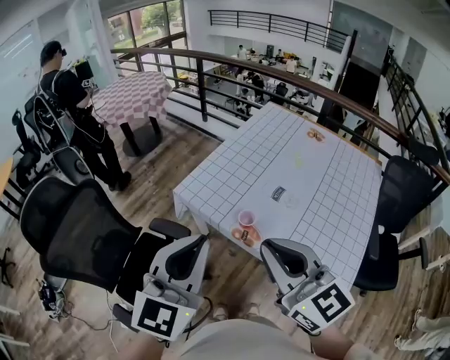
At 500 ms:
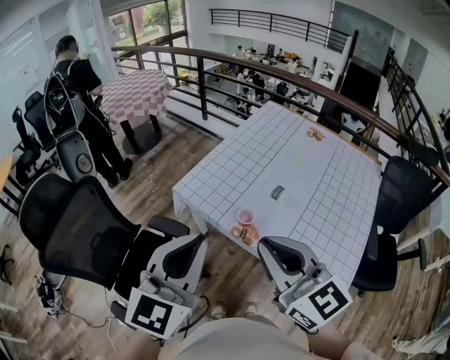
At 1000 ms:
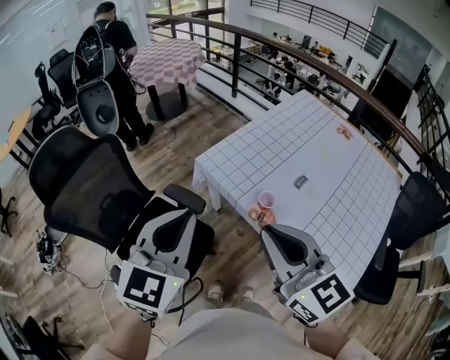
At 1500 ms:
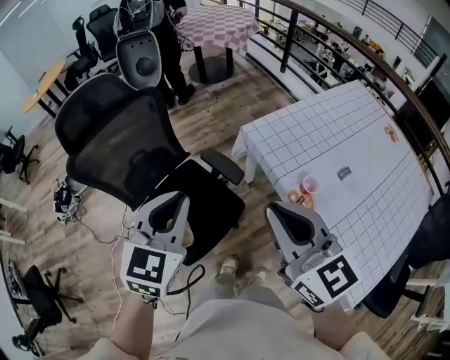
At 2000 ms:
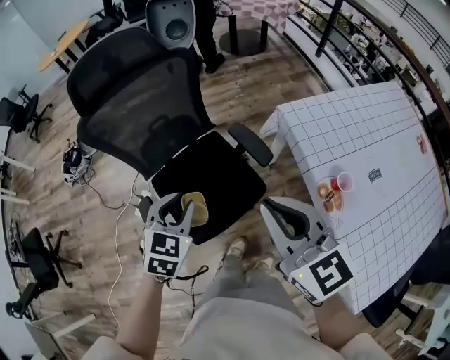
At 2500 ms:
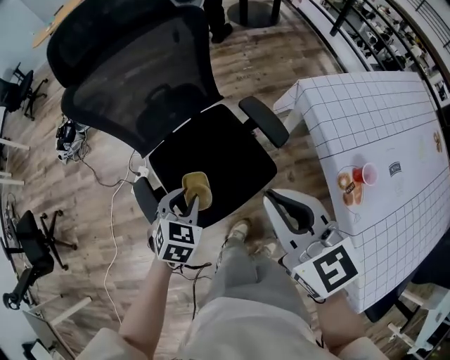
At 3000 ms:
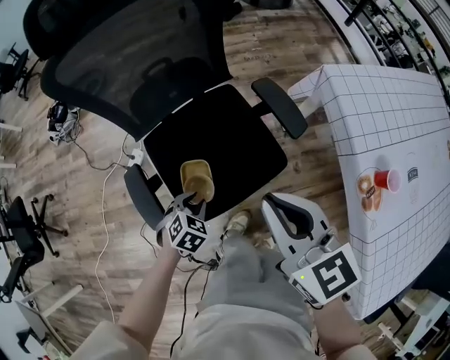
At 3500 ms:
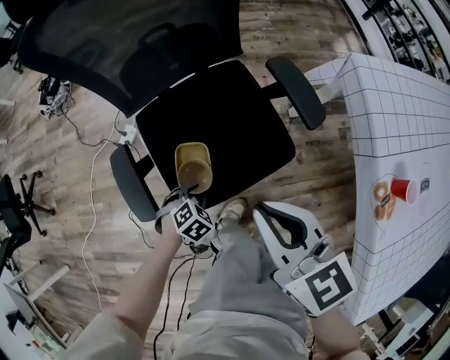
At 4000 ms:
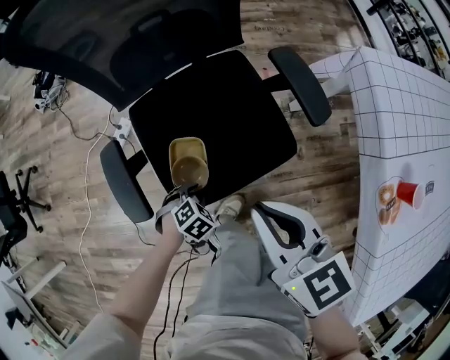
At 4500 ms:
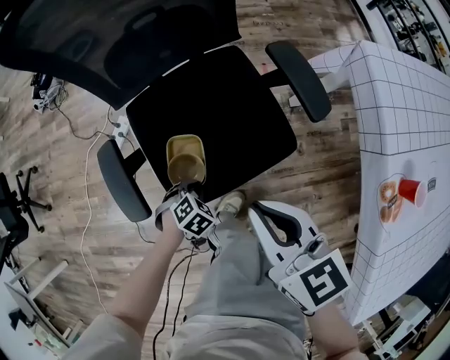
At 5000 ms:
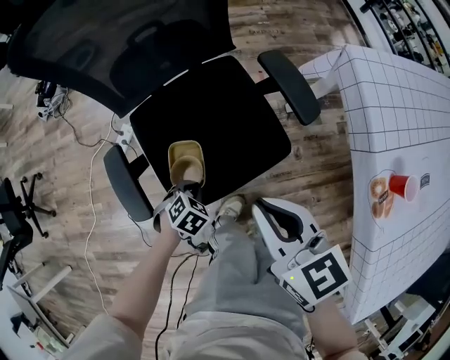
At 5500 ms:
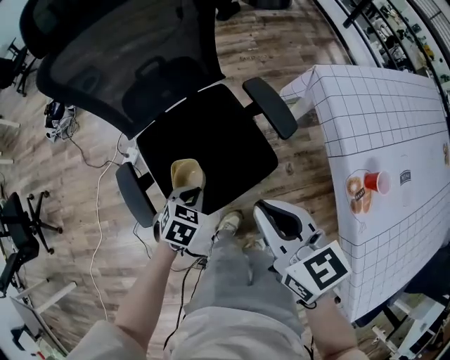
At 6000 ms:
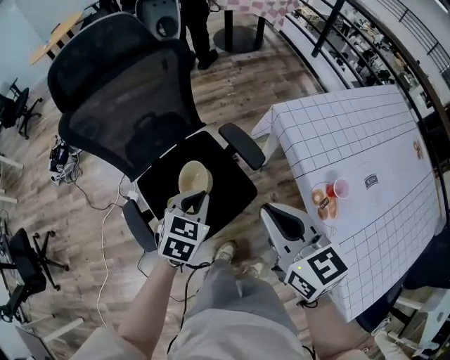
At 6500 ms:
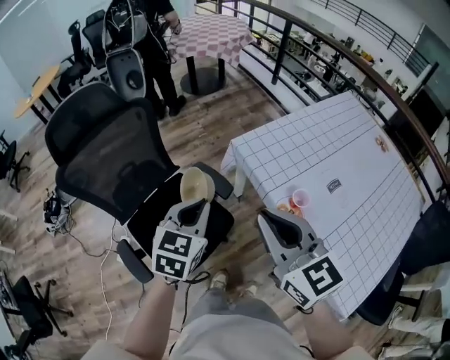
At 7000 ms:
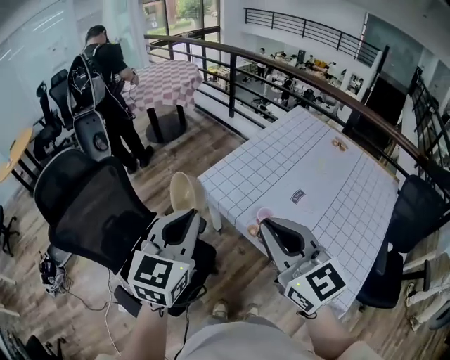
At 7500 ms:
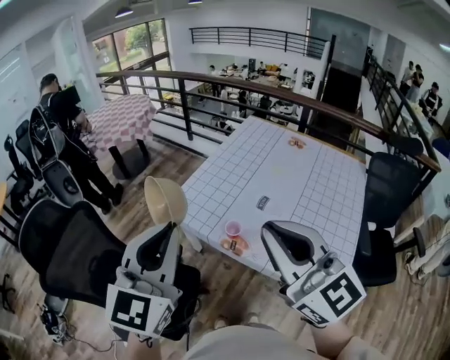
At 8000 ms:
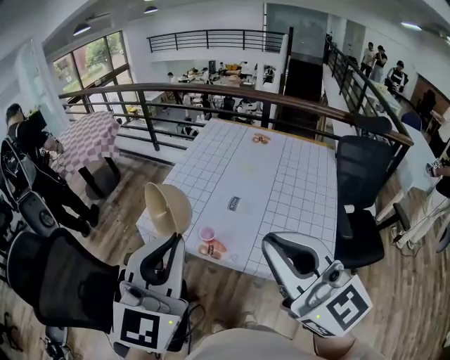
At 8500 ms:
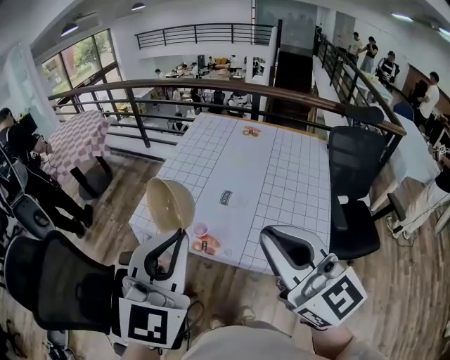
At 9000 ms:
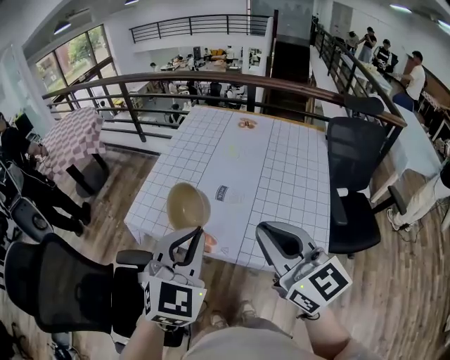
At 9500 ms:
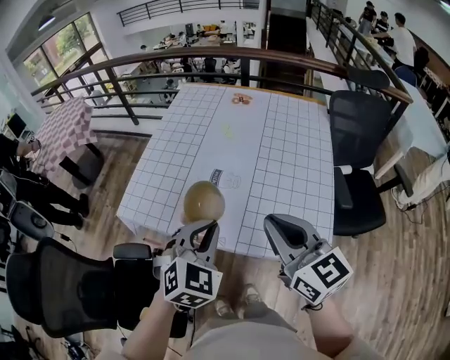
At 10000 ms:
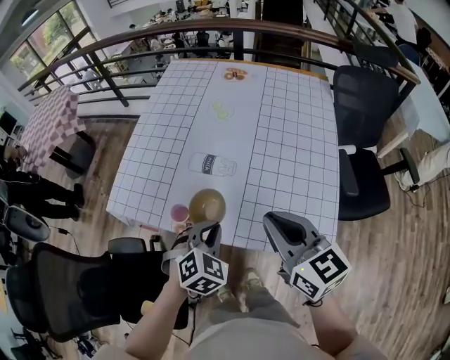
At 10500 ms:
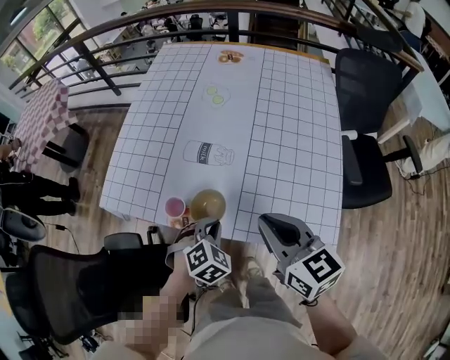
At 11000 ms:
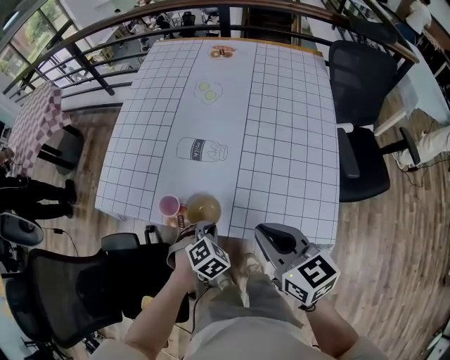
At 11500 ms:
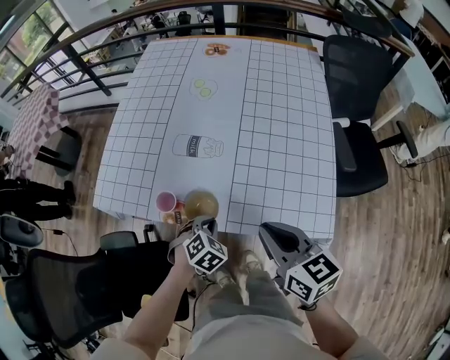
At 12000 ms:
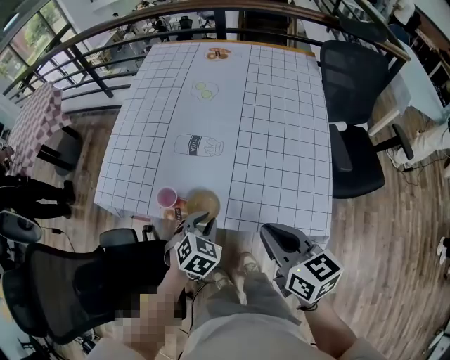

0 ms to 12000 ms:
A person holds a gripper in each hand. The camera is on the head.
0 ms to 2000 ms: The left gripper shifts by roughly 40 cm, tips its fingers downward by approximately 40 degrees, and opens up. Meanwhile the right gripper ends up some 30 cm from where it was, and swivels approximately 30 degrees.
2000 ms to 4000 ms: The left gripper heads downward, covering some 50 cm, and points its fingers some 40 degrees further downward. The right gripper heads downward, covering approximately 30 cm, and swivels roughly 20 degrees.
4000 ms to 6000 ms: The right gripper travels upward by roughly 20 cm. Meanwhile the left gripper shifts some 40 cm upward, points its fingers roughly 30 degrees further upward, and closes up.
6000 ms to 8000 ms: The right gripper ends up about 40 cm from where it was, and turns by roughly 60 degrees. The left gripper is displaced upward by about 40 cm, and points its fingers some 50 degrees further upward.
8000 ms to 10000 ms: The right gripper is displaced downward, forward and to the right by some 30 cm, and turns by some 30 degrees. Meanwhile the left gripper shifts approximately 40 cm downward, to the right and forward, and tips its fingers downward by approximately 50 degrees.
10000 ms to 12000 ms: The left gripper shifts about 10 cm downward. The right gripper travels downward and backward by about 10 cm.

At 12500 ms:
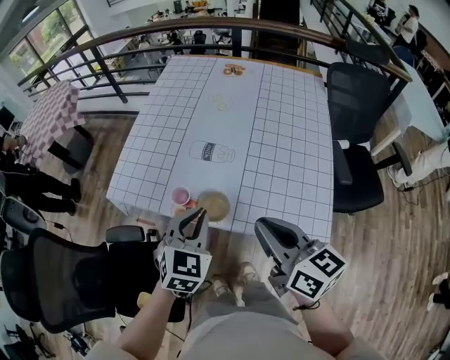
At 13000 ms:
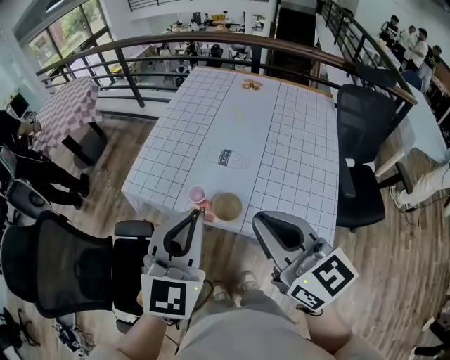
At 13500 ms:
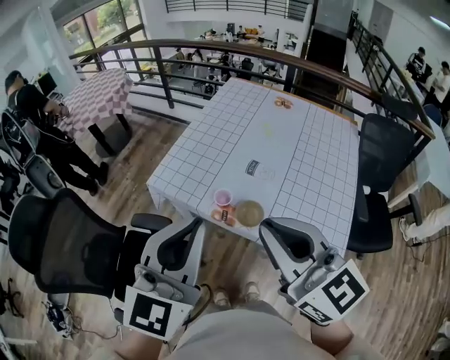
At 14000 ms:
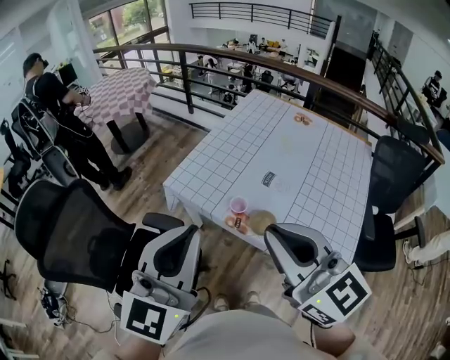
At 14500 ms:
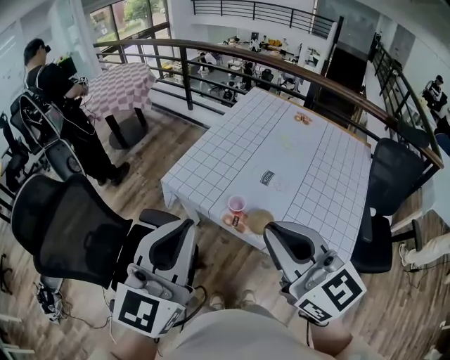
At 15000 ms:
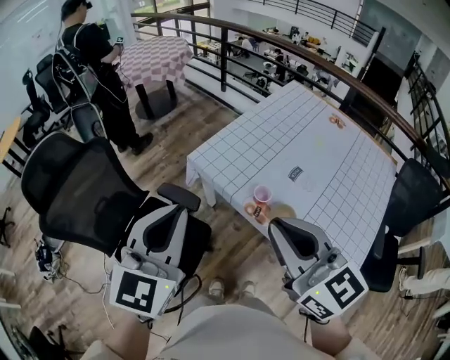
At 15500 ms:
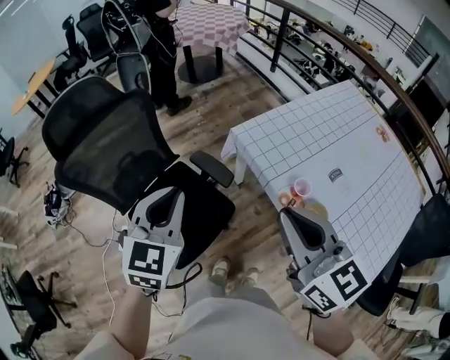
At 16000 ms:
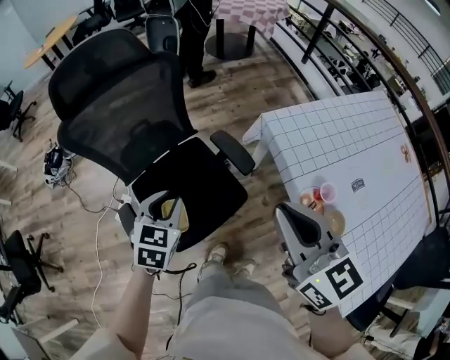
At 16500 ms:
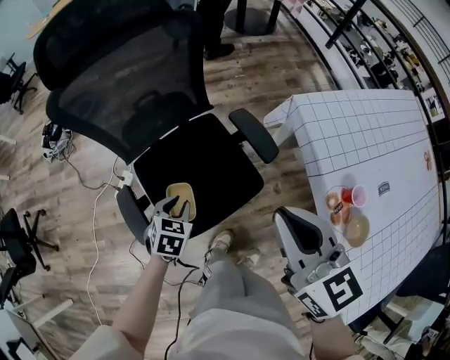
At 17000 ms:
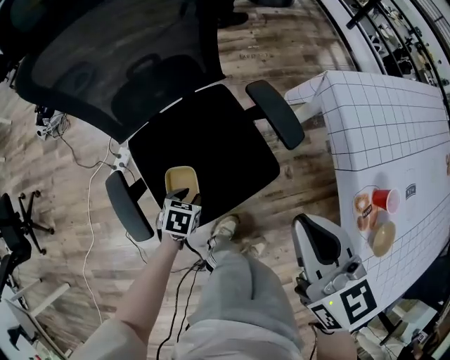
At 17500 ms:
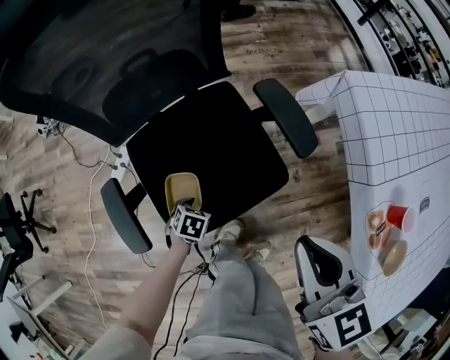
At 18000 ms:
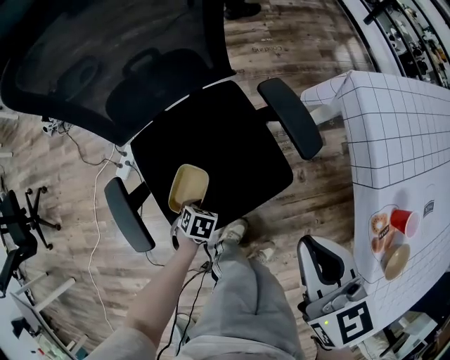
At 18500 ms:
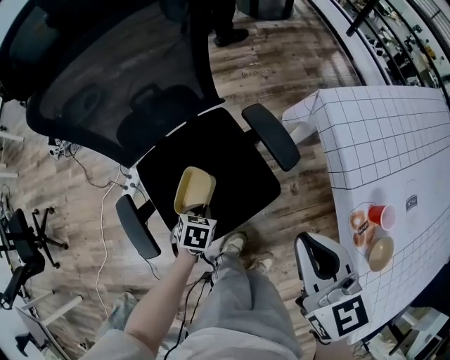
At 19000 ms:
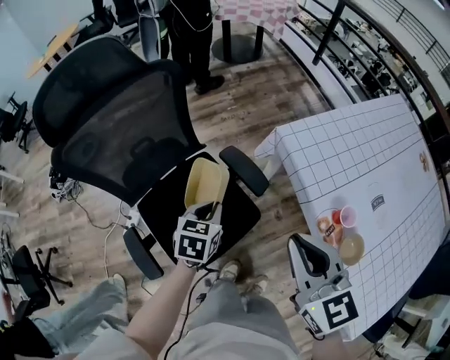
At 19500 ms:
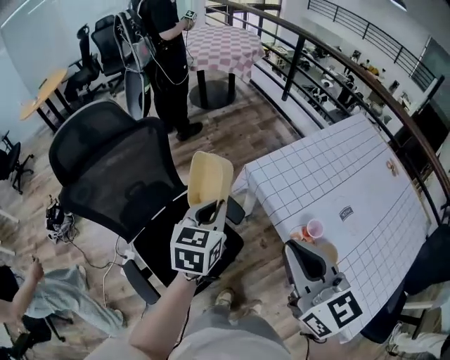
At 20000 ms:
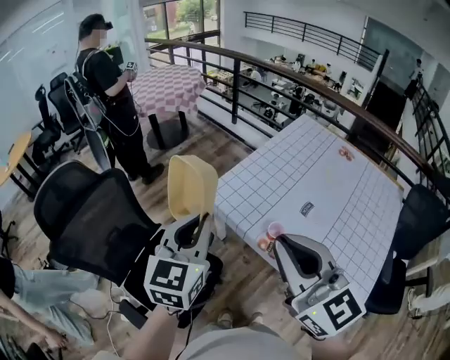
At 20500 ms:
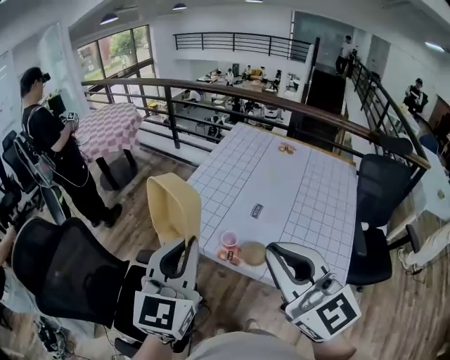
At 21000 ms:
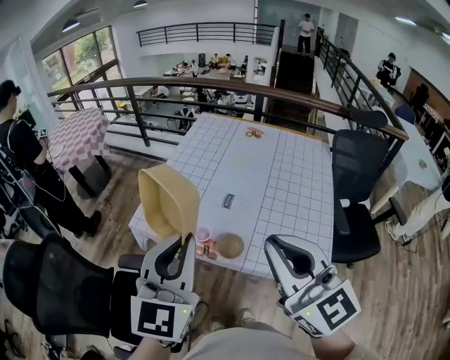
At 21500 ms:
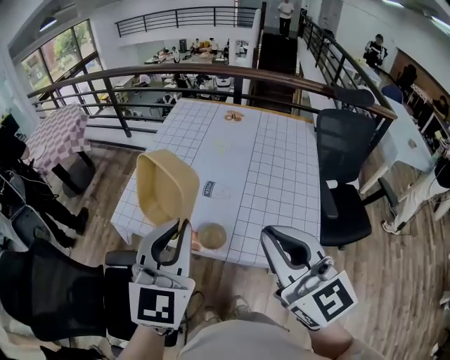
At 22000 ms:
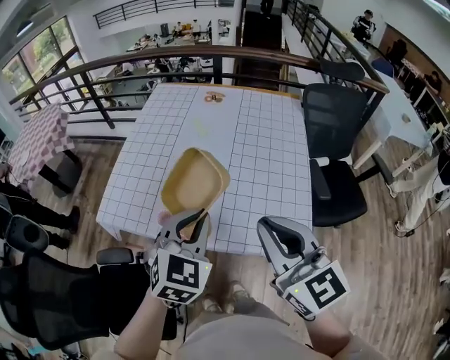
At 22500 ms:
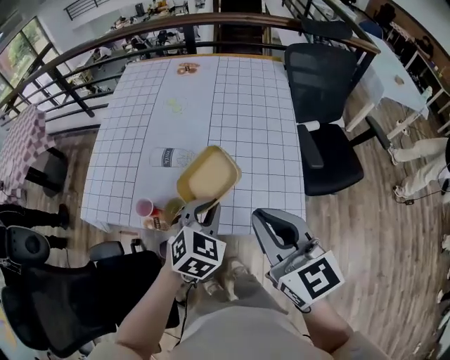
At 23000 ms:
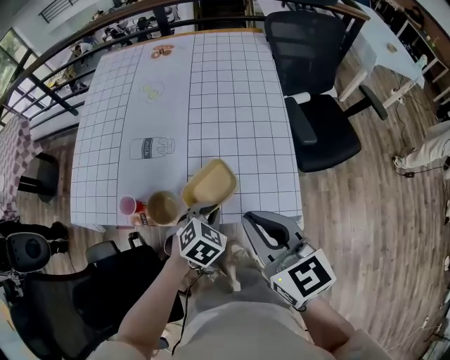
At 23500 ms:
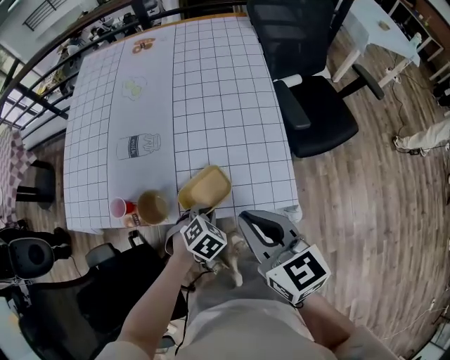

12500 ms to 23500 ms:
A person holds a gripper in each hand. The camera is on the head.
12500 ms to 14500 ms: The left gripper travels upward, to the left and backward by roughly 35 cm, and points its fingers approximately 40 degrees further upward, while the right gripper heads to the left and upward, covering about 25 cm, and swivels some 40 degrees.
14500 ms to 16000 ms: The left gripper moves downward, approximately 35 cm, angles its fingers downward, by about 40 degrees, and opens. The right gripper moves roughly 25 cm, and changes its angle by roughly 30 degrees.
16000 ms to 18000 ms: The right gripper moves downward, approximately 25 cm, and changes its angle by some 20 degrees. The left gripper moves downward, about 50 cm, and points its fingers approximately 40 degrees further downward.
18000 ms to 20000 ms: The right gripper travels upward by approximately 40 cm, and points its fingers approximately 30 degrees further upward. The left gripper goes approximately 70 cm upward, and points its fingers roughly 70 degrees further upward.
20000 ms to 21500 ms: The left gripper changes place by about 25 cm, and rotates roughly 30 degrees. Meanwhile the right gripper shifts by roughly 25 cm, and swivels some 30 degrees.
21500 ms to 23500 ms: The right gripper is displaced downward and to the right by roughly 25 cm, and turns by some 30 degrees, while the left gripper shifts roughly 50 cm downward and to the right, and tips its fingers downward by some 60 degrees.

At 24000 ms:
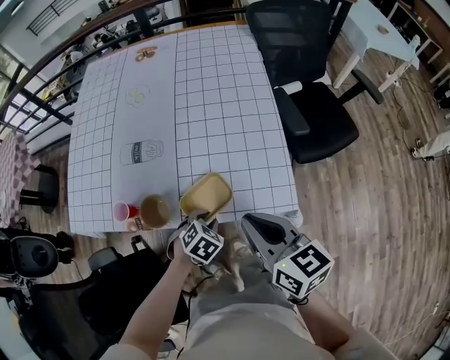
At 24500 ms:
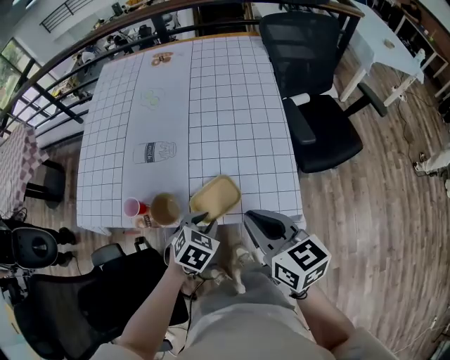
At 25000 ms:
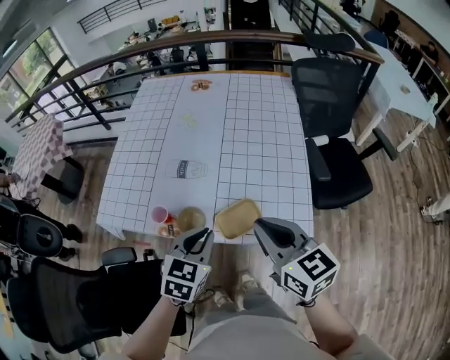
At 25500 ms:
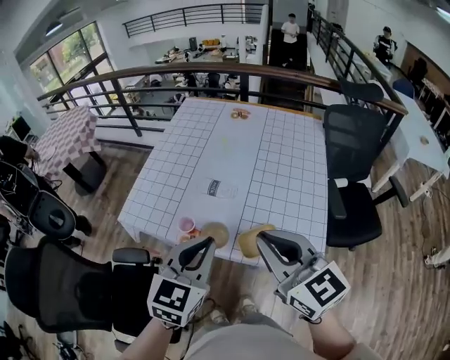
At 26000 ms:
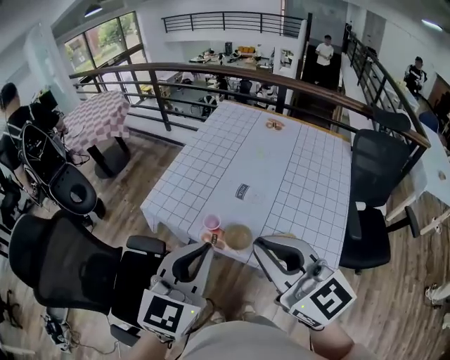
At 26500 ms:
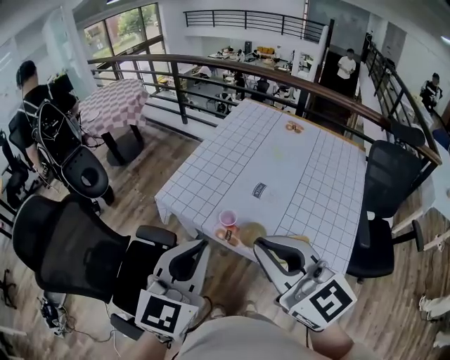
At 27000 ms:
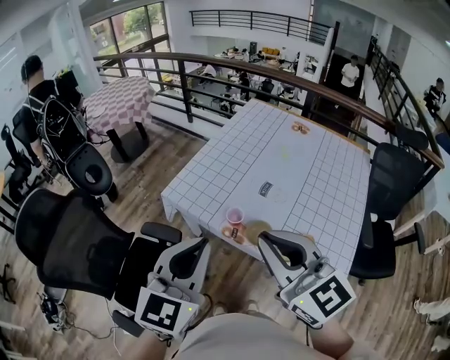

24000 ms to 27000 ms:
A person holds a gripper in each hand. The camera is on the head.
24000 ms to 25500 ms: The right gripper travels upward and to the left by roughly 25 cm, and swivels some 40 degrees, while the left gripper moves upward, approximately 35 cm, tips its fingers upward by about 50 degrees, and closes.
25500 ms to 27000 ms: The left gripper heads to the left and upward, covering some 20 cm, and changes its angle by about 20 degrees. The right gripper shifts approximately 15 cm to the left.
